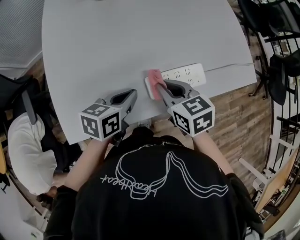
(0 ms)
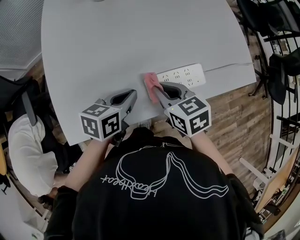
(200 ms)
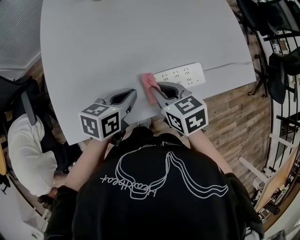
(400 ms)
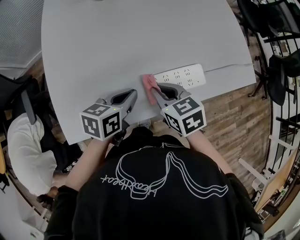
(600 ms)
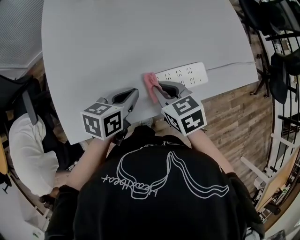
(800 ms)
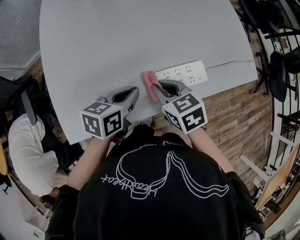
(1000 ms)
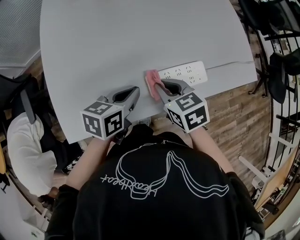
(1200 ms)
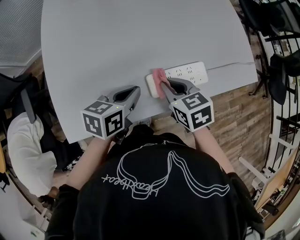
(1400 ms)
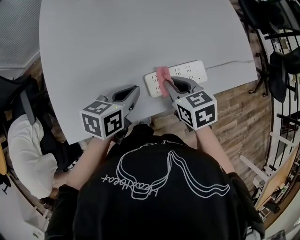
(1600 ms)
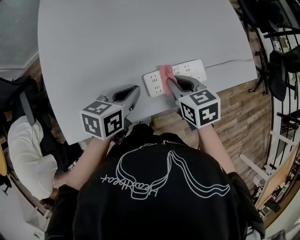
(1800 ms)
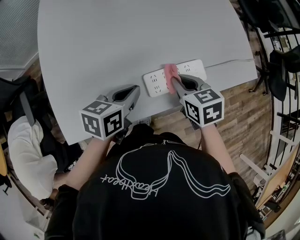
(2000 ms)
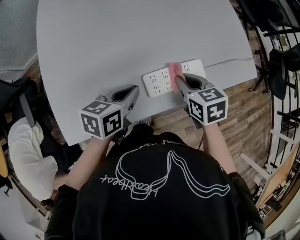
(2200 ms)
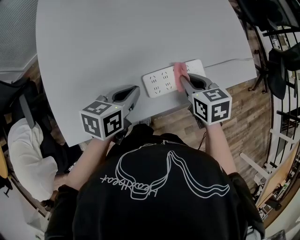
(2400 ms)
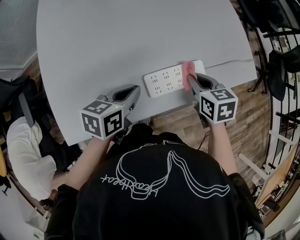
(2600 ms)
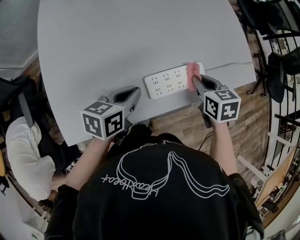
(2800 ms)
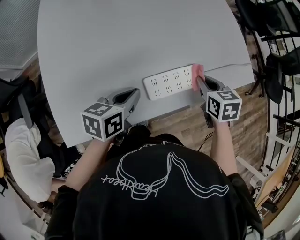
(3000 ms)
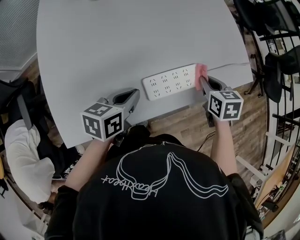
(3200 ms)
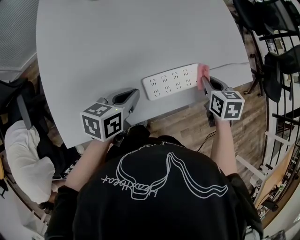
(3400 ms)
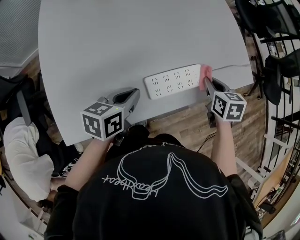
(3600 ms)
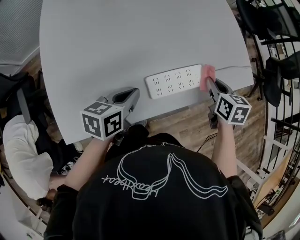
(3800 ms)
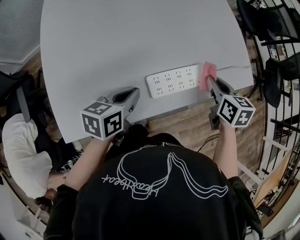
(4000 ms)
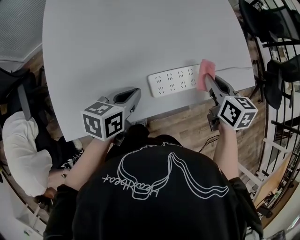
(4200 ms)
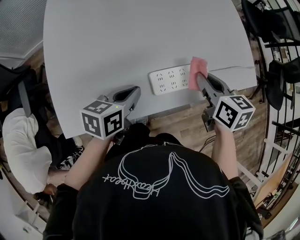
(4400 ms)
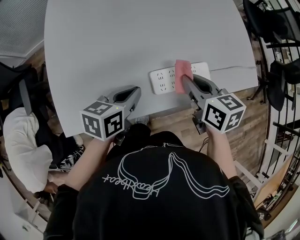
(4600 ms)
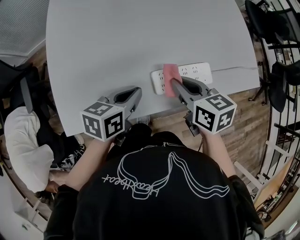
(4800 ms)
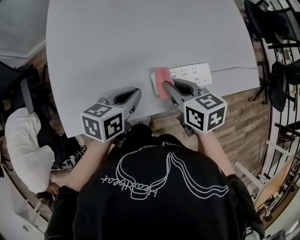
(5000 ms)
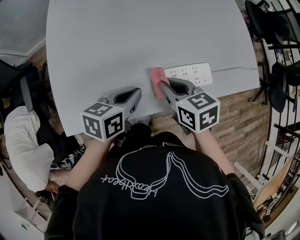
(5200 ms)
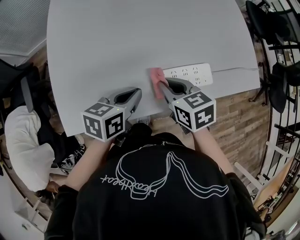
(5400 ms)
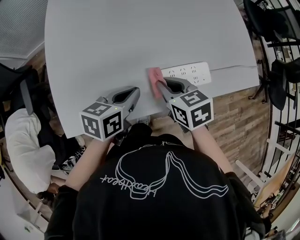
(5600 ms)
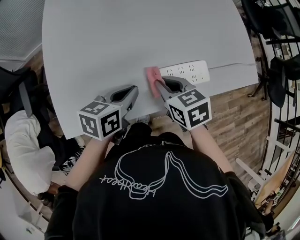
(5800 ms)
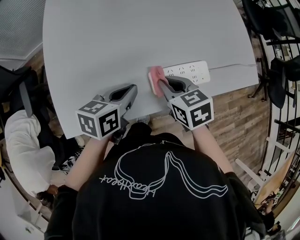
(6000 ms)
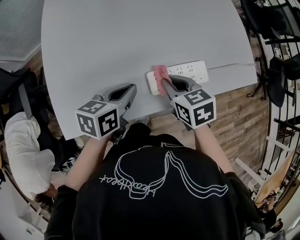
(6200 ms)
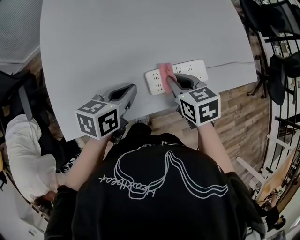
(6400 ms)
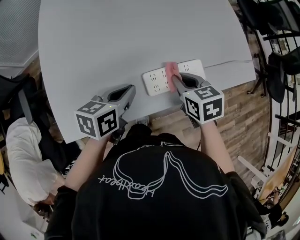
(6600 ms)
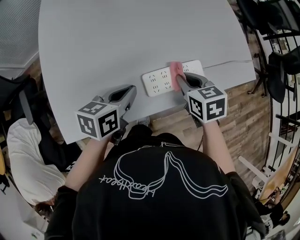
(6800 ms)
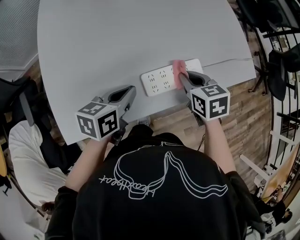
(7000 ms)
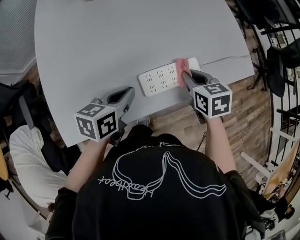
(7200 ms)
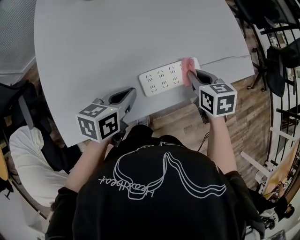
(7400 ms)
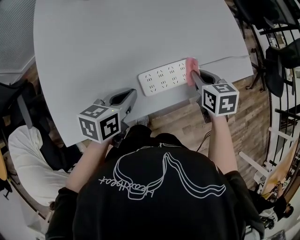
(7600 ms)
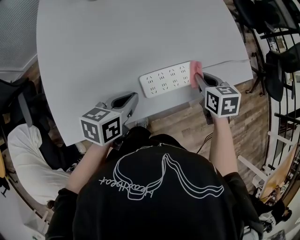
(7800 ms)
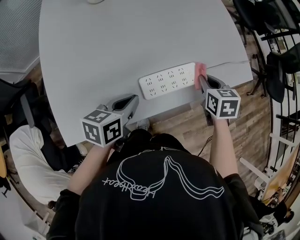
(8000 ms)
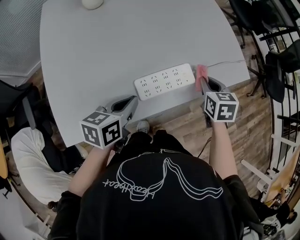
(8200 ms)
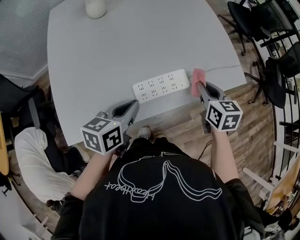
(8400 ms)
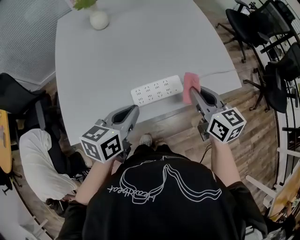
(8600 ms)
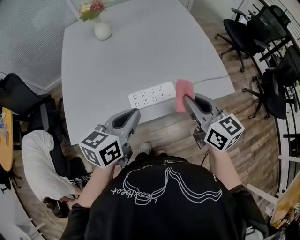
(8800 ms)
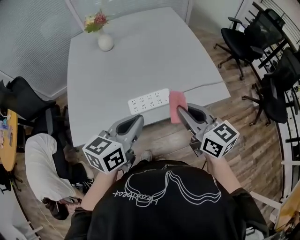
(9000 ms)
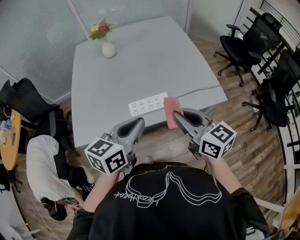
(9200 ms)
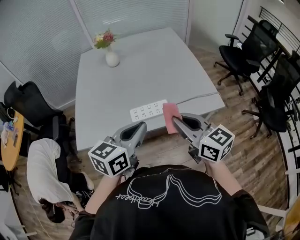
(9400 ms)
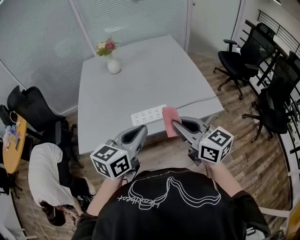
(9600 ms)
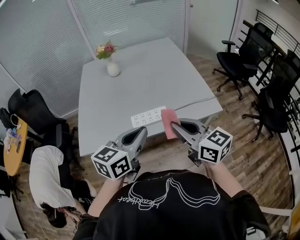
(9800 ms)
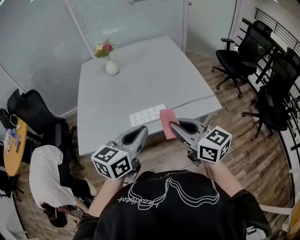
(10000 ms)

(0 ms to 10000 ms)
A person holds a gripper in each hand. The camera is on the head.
0 ms - 1400 ms: The grippers move only a little.
1400 ms - 2800 ms: The right gripper travels to the right and forward by approximately 15 cm.
2800 ms - 4200 ms: The right gripper heads upward, covering roughly 5 cm.
4200 ms - 5800 ms: The right gripper heads to the left, covering some 15 cm, and turns by roughly 20 degrees.
5800 ms - 7200 ms: The right gripper moves to the right, about 15 cm.
7200 ms - 8600 ms: Both grippers travel together upward and to the right, about 15 cm. The right gripper points its fingers about 30 degrees further upward.
8600 ms - 10000 ms: The right gripper is displaced backward and upward by some 20 cm, and turns by some 20 degrees. The left gripper heads upward, backward and to the right, covering some 20 cm, and swivels about 20 degrees.

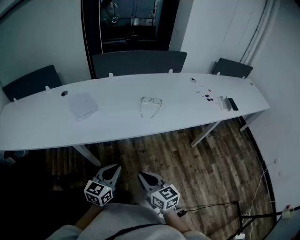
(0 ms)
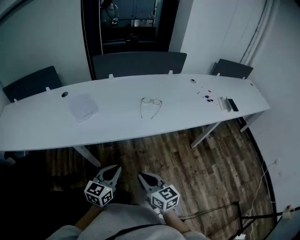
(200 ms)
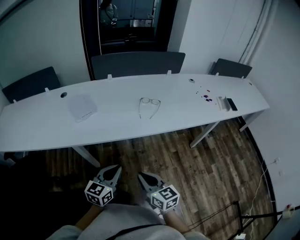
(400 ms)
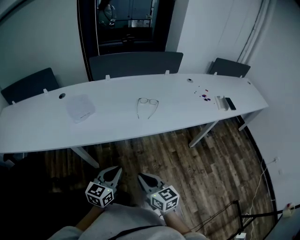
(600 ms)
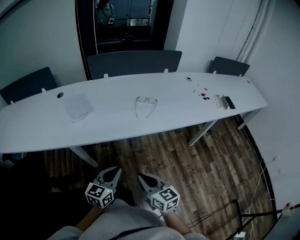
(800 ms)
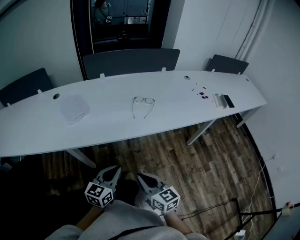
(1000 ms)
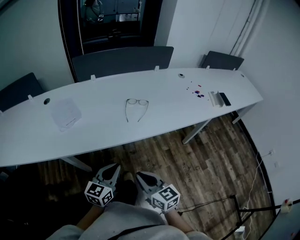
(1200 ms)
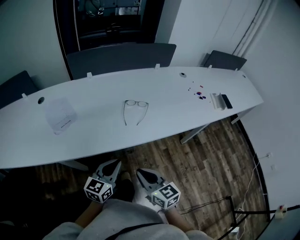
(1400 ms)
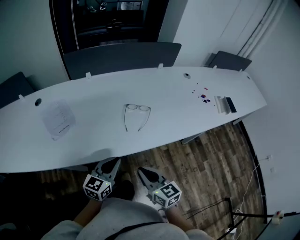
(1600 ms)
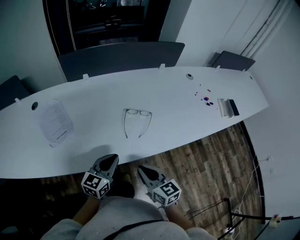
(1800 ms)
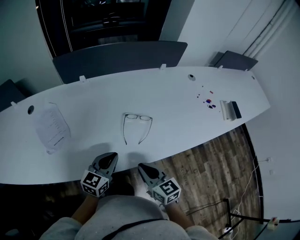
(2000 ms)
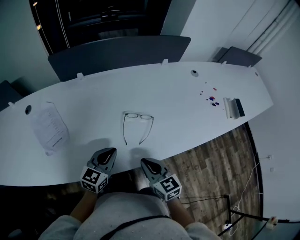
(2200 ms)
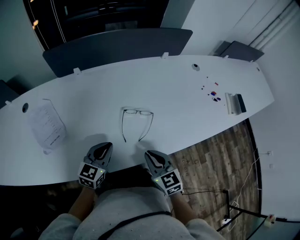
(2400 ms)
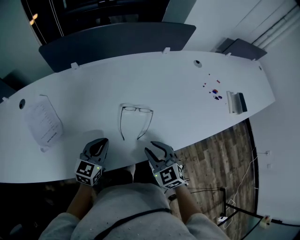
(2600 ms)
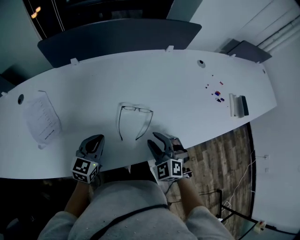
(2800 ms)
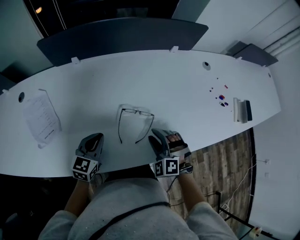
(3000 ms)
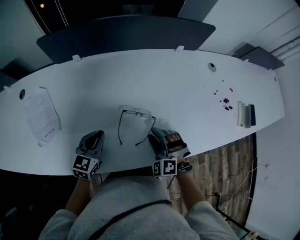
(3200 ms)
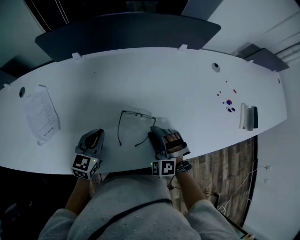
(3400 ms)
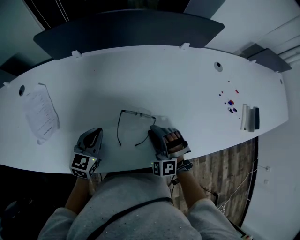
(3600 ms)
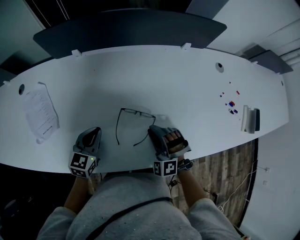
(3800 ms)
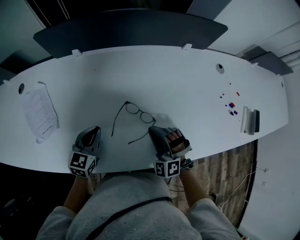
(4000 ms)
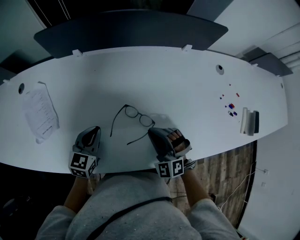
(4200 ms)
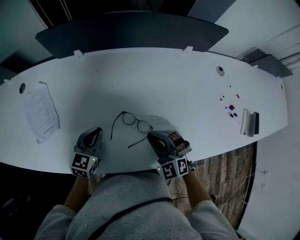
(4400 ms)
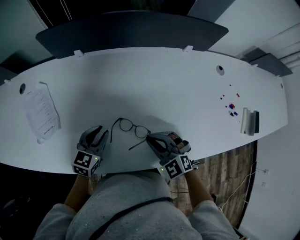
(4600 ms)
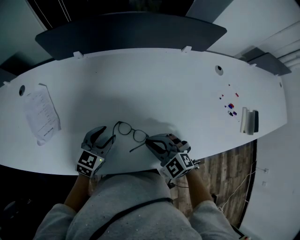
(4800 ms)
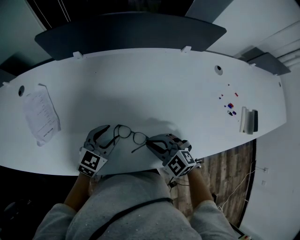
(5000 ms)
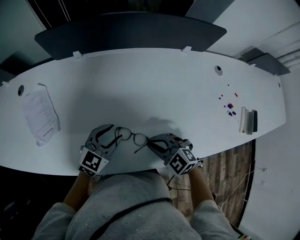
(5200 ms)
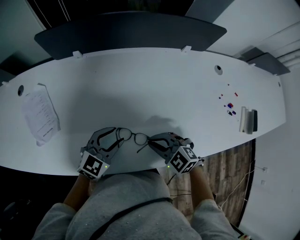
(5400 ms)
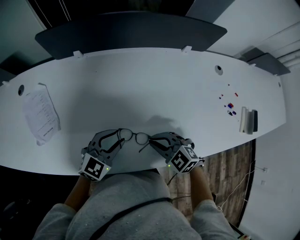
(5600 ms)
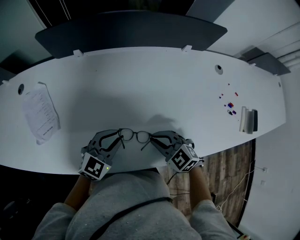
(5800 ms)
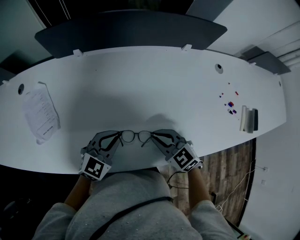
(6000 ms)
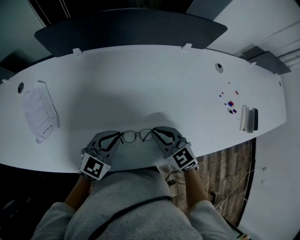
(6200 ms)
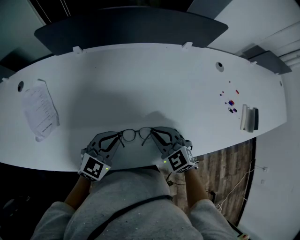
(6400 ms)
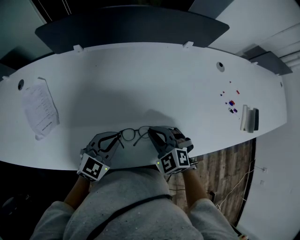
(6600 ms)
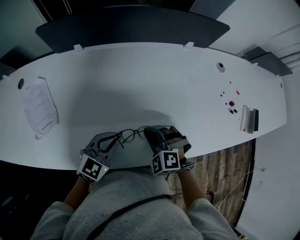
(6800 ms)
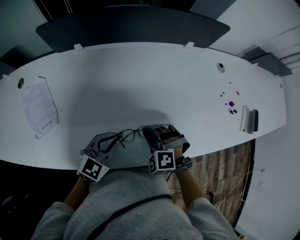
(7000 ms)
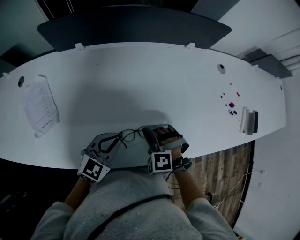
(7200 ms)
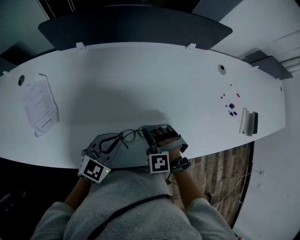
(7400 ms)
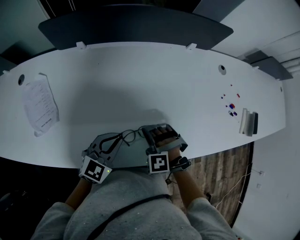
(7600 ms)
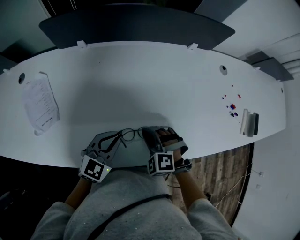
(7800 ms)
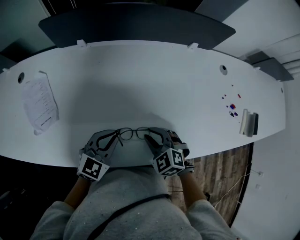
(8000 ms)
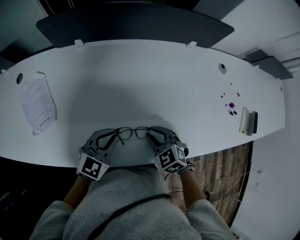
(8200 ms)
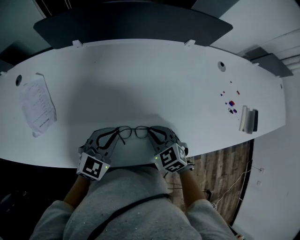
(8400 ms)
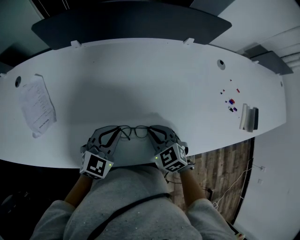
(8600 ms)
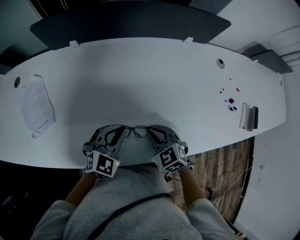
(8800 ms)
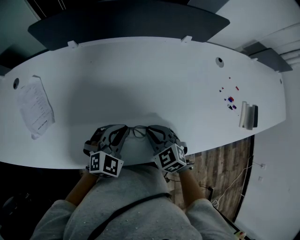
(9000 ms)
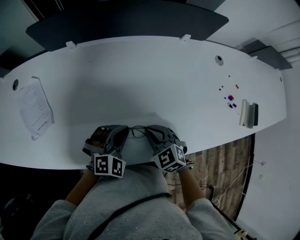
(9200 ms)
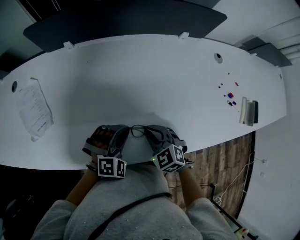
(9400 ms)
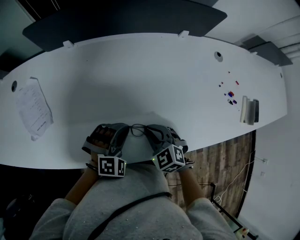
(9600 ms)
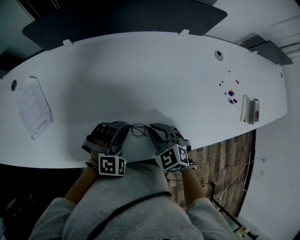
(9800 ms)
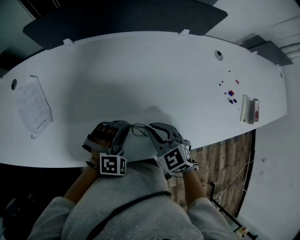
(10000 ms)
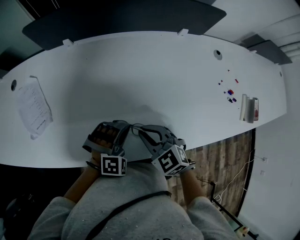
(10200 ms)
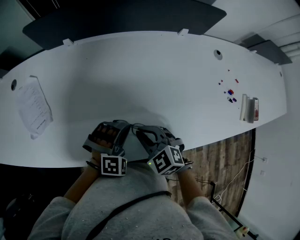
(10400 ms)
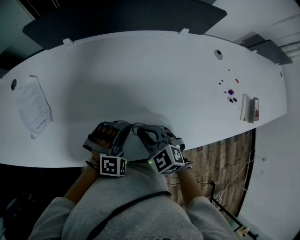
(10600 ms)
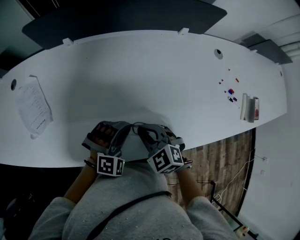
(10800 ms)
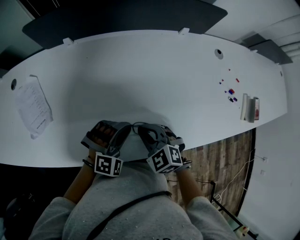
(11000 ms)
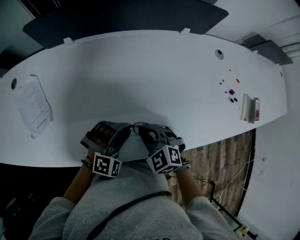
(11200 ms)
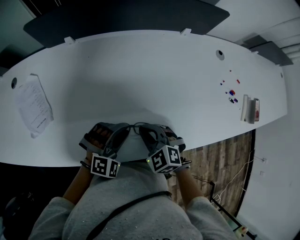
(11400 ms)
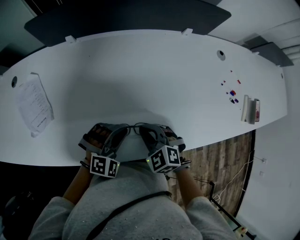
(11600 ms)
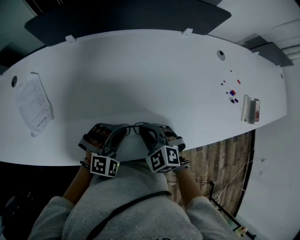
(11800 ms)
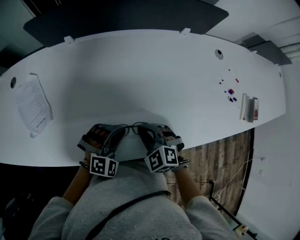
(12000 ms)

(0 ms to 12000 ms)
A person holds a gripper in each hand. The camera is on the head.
0 ms - 1600 ms: The two grippers go about 20 cm forward.
1600 ms - 3000 ms: Both grippers move forward, some 25 cm. The right gripper twists roughly 70 degrees counterclockwise, seen from behind, and opens.
3000 ms - 4400 ms: The right gripper turns by some 20 degrees, and closes.
4400 ms - 6000 ms: The left gripper heads to the right, covering about 5 cm, rotates some 30 degrees, and opens and closes again; the right gripper swivels roughly 30 degrees.
6000 ms - 7600 ms: The right gripper changes place by approximately 5 cm, and rolls counterclockwise, seen from behind, by approximately 50 degrees.
7600 ms - 9000 ms: The right gripper twists roughly 50 degrees clockwise, seen from behind, while the left gripper changes place by some 5 cm, and changes its angle by roughly 20 degrees.
9000 ms - 10400 ms: The left gripper rotates about 40 degrees.
10400 ms - 12000 ms: There are only small adjustments of the grippers.

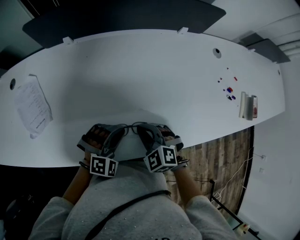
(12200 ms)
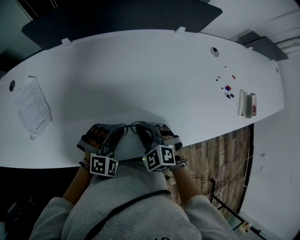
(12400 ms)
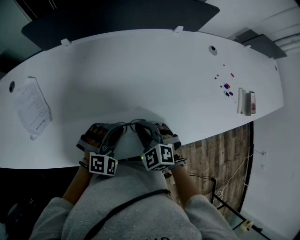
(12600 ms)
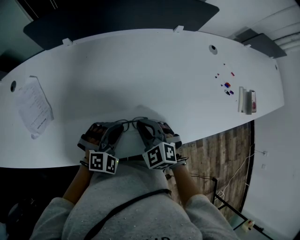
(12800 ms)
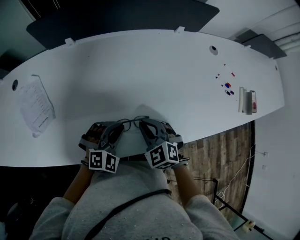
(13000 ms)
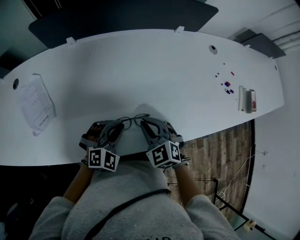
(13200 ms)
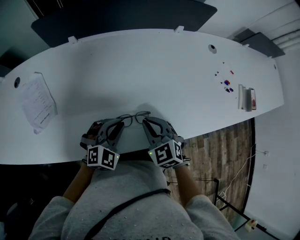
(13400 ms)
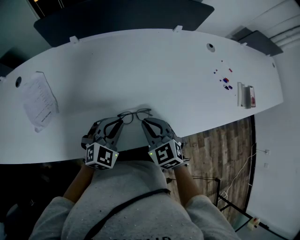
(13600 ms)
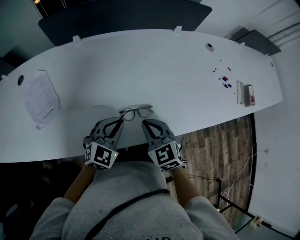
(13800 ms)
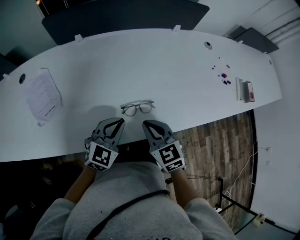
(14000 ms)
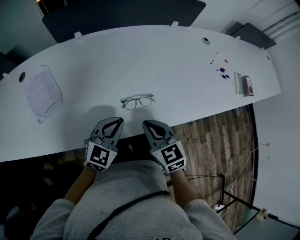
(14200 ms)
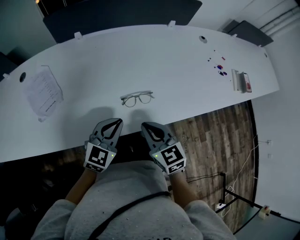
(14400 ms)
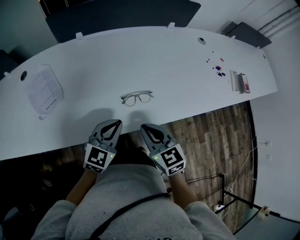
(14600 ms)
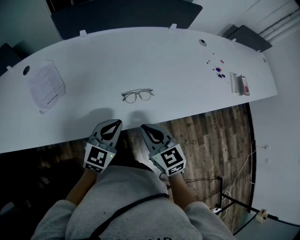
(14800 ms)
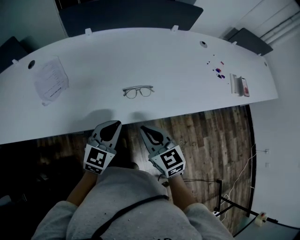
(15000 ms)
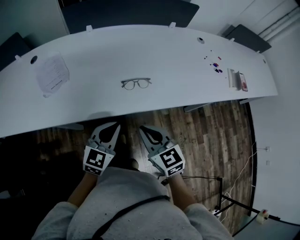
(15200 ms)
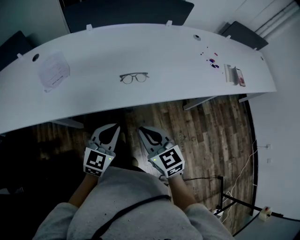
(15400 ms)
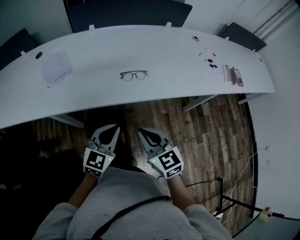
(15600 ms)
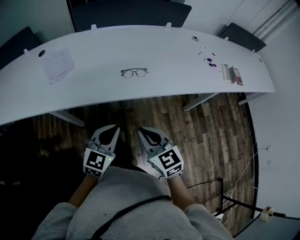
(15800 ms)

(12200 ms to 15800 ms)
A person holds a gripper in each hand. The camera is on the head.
12200 ms - 14000 ms: The left gripper travels upward and backward by some 10 cm, and swivels roughly 40 degrees. Meanwhile the right gripper goes approximately 10 cm backward and upward, and turns by approximately 40 degrees.
14000 ms - 15800 ms: The grippers both shift backward by approximately 30 cm.
